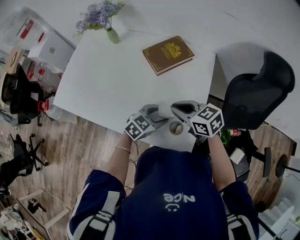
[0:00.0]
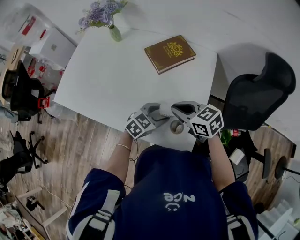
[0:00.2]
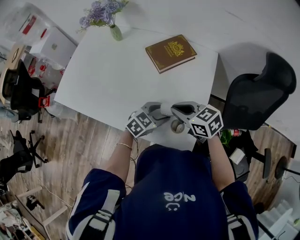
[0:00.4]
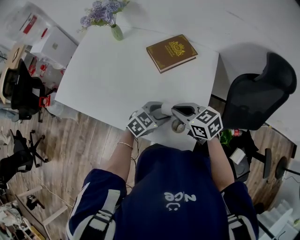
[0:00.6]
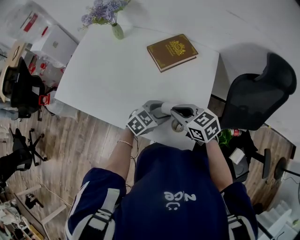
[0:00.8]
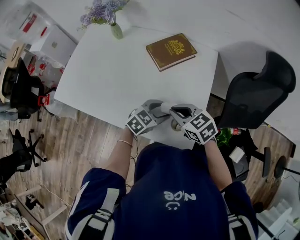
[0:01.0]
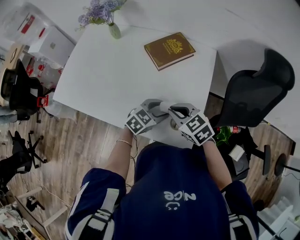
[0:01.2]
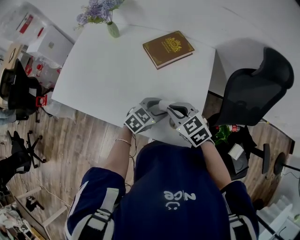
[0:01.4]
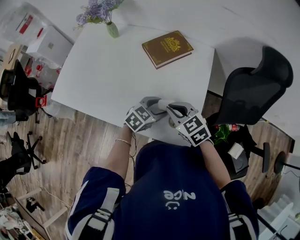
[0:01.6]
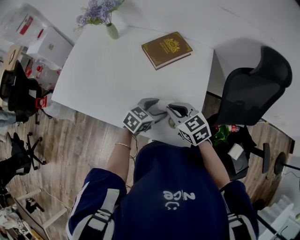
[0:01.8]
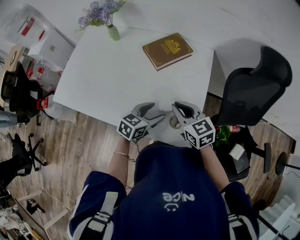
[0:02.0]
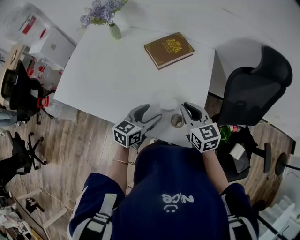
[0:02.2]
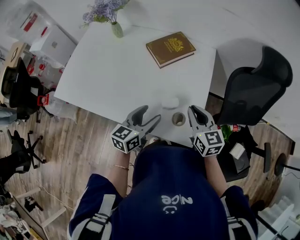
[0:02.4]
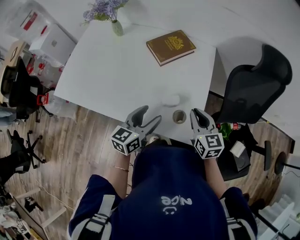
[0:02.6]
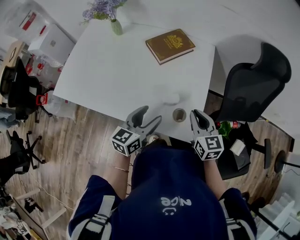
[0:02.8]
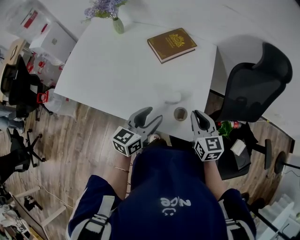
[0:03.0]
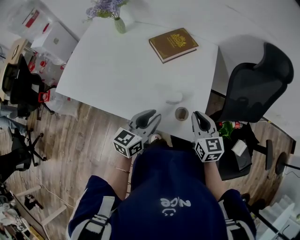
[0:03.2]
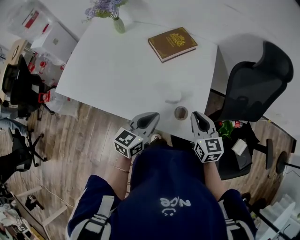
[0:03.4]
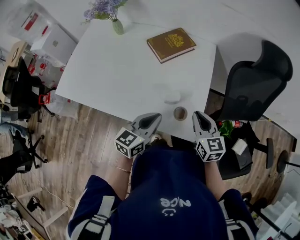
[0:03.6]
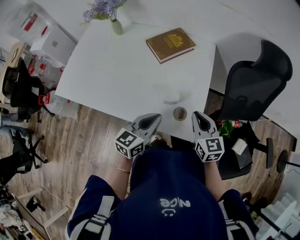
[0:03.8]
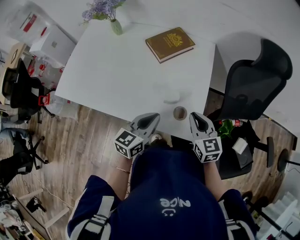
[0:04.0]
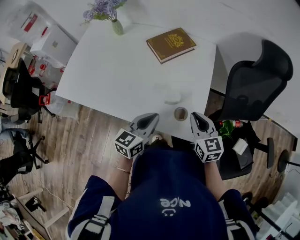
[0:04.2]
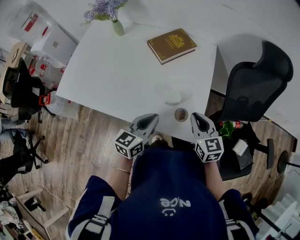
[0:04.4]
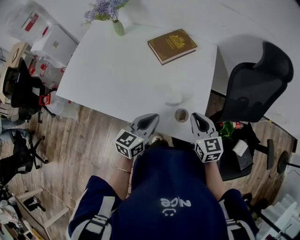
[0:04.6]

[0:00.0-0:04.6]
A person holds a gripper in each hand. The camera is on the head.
0:01.6 to 0:03.0: The right gripper heads to the right, covering about 10 cm, and rotates approximately 30 degrees; the left gripper heads upward, backward and to the left, covering roughly 15 cm, and swivels about 40 degrees.
0:03.0 to 0:04.6: The left gripper closes its fingers.

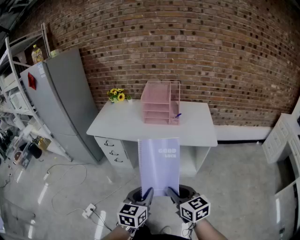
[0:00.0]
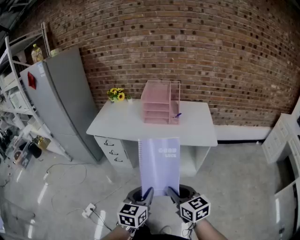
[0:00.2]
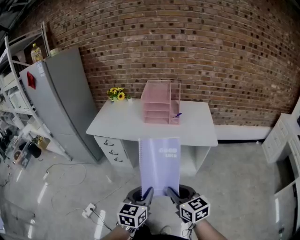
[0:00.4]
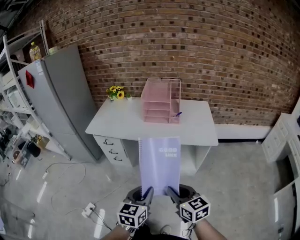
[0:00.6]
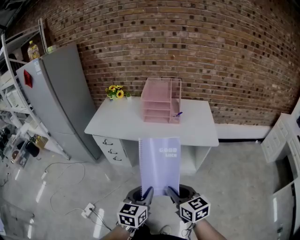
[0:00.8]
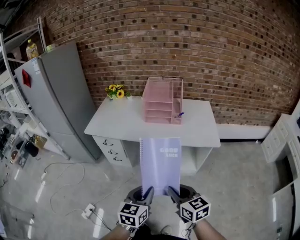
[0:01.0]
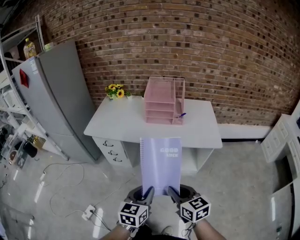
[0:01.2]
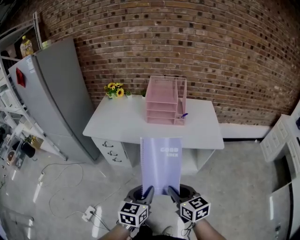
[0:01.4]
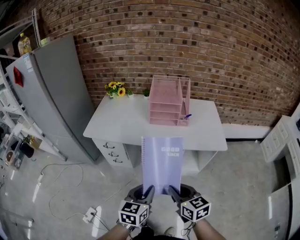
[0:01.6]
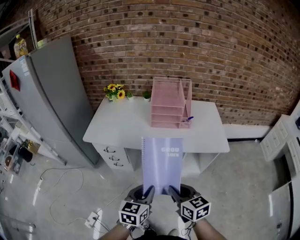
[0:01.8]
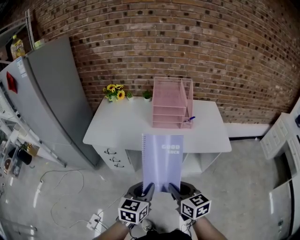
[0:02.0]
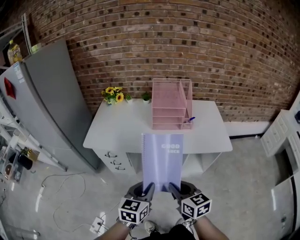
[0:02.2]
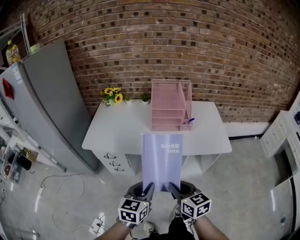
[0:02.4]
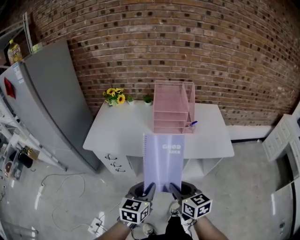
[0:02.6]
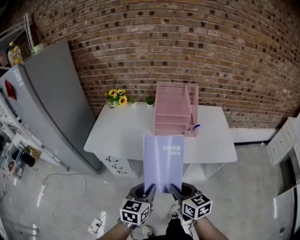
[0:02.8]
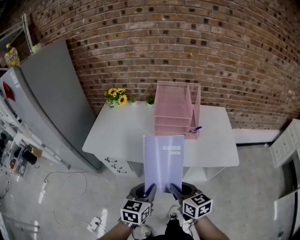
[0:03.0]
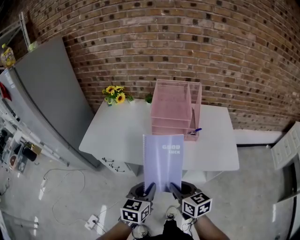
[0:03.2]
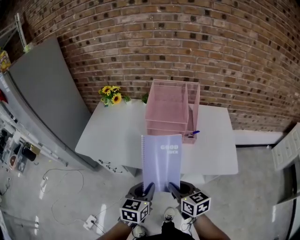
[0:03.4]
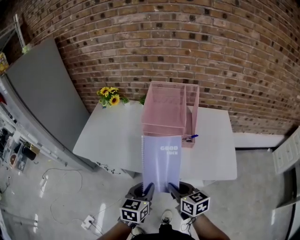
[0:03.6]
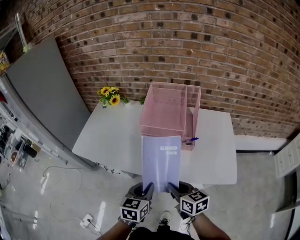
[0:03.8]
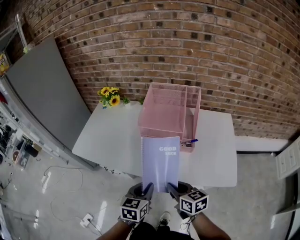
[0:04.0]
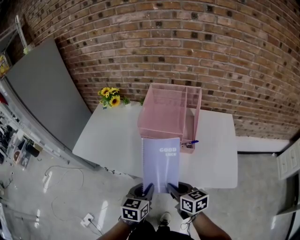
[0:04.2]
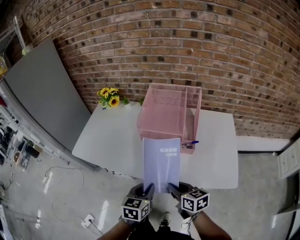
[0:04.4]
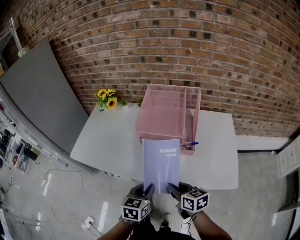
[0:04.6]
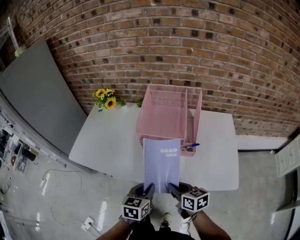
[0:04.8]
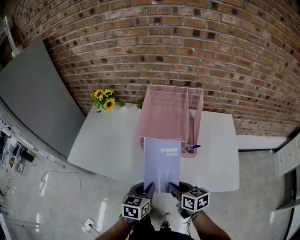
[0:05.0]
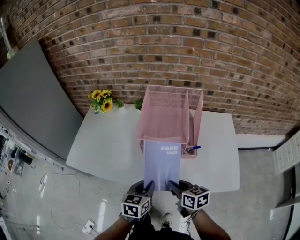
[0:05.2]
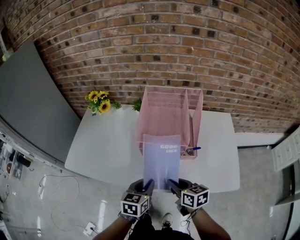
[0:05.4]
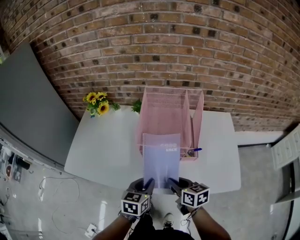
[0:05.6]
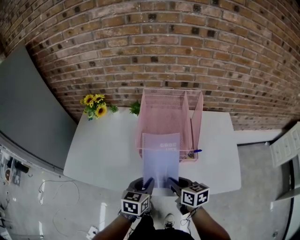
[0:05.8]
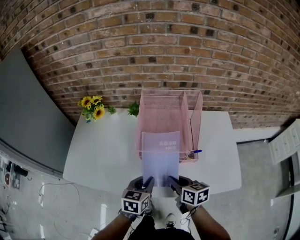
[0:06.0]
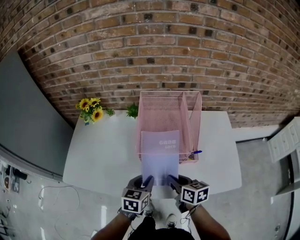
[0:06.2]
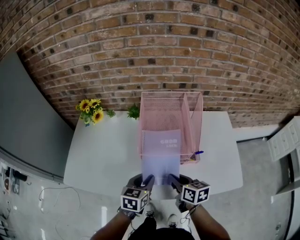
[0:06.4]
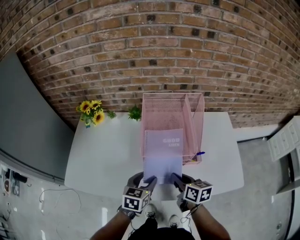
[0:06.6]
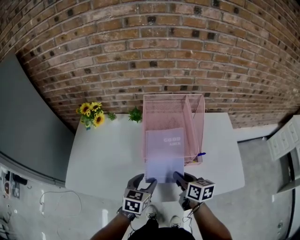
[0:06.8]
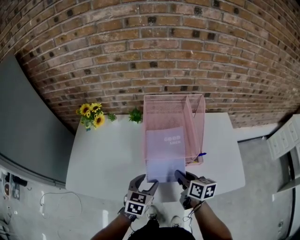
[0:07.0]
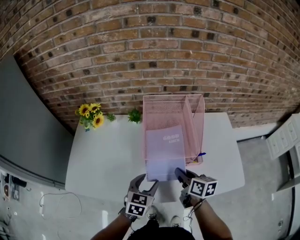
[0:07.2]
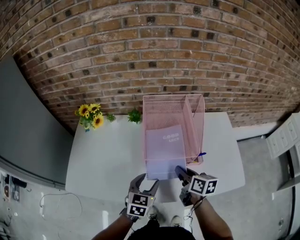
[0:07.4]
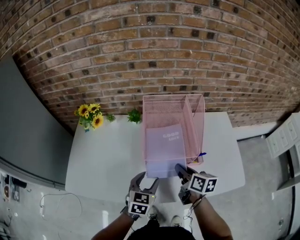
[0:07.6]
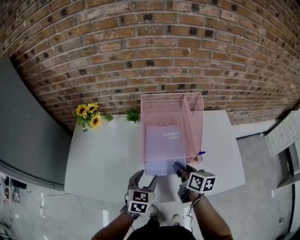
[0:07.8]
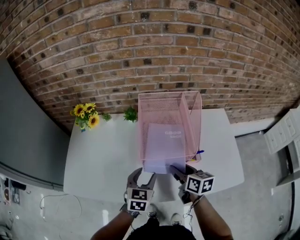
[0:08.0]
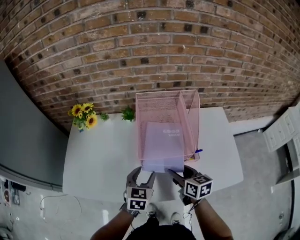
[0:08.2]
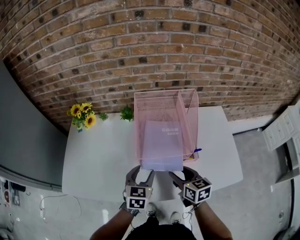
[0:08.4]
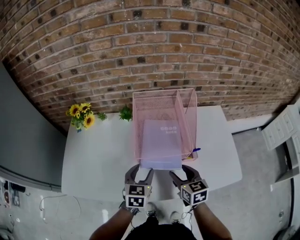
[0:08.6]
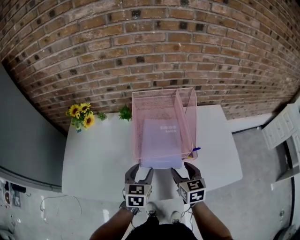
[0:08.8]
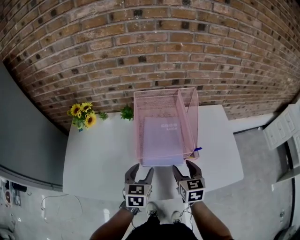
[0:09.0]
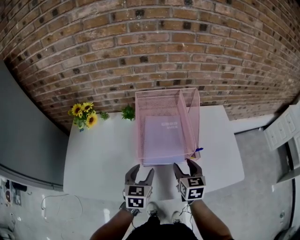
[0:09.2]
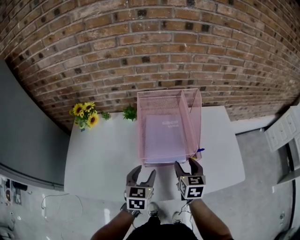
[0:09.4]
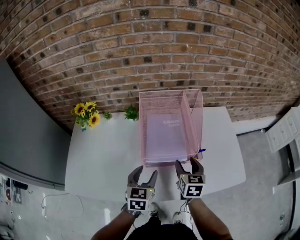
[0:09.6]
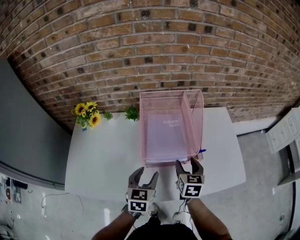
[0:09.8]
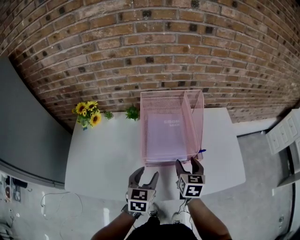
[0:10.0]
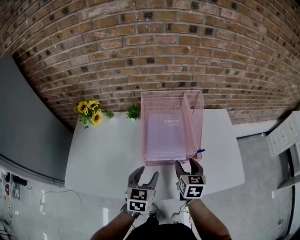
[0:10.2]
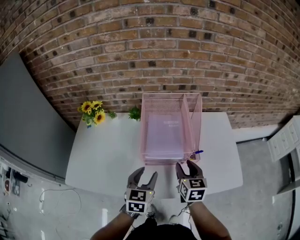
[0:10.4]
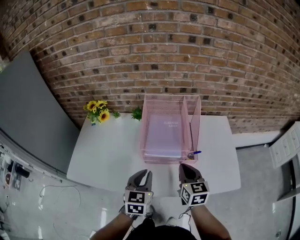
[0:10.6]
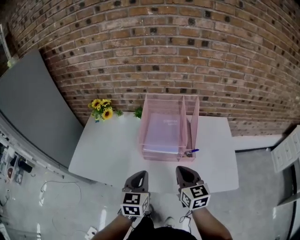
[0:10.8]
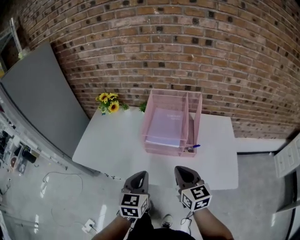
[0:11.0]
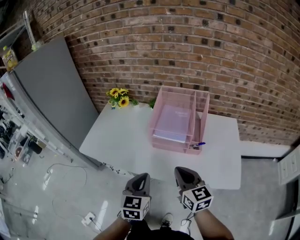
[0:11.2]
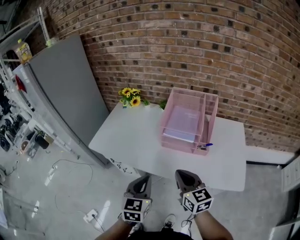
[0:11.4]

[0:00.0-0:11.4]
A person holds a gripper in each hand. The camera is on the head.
0:00.0 to 0:01.4: Both grippers move forward and to the left, roughly 10 cm.
0:01.4 to 0:02.8: The two grippers go about 15 cm forward.
0:02.8 to 0:04.2: The two grippers go some 20 cm forward, to the right and downward.
0:04.2 to 0:05.6: The grippers both shift forward by approximately 10 cm.
0:05.6 to 0:07.2: The grippers both shift forward by about 10 cm. The left gripper opens.
0:07.2 to 0:08.6: The right gripper swivels about 30 degrees, and opens up.
0:08.6 to 0:10.0: The grippers make only small movements.
0:10.0 to 0:11.4: The right gripper ends up approximately 25 cm from where it was, turns by about 50 degrees, and closes; the left gripper moves about 25 cm, swivels roughly 20 degrees, and closes its fingers.

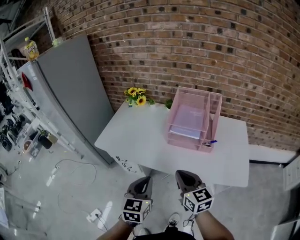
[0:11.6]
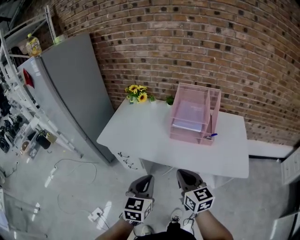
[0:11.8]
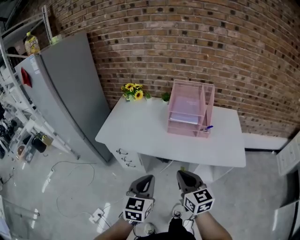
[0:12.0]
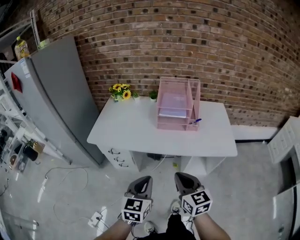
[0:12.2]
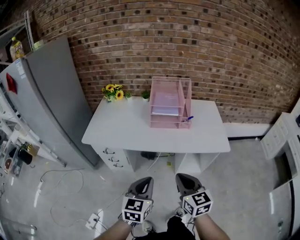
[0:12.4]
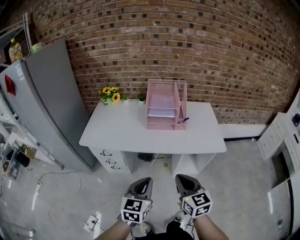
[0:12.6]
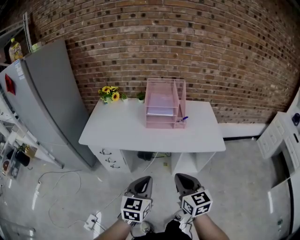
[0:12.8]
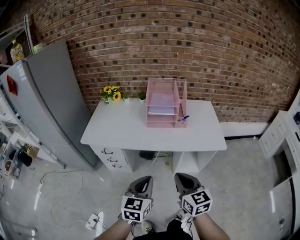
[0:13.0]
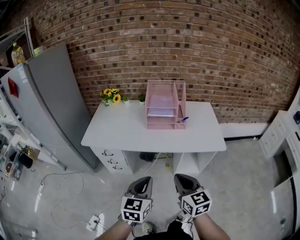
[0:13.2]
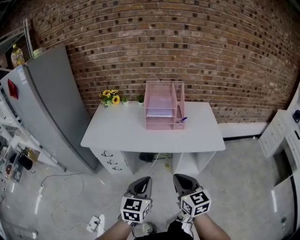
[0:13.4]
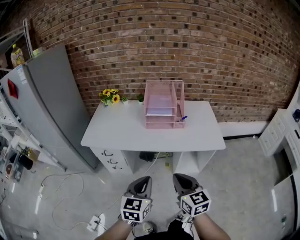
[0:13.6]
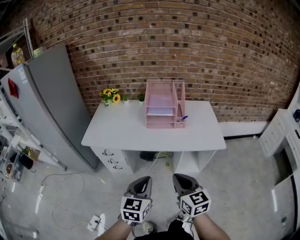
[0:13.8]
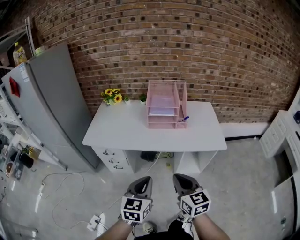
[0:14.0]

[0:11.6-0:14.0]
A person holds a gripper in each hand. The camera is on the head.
0:11.6 to 0:12.8: The grippers both shift backward by roughly 20 cm.
0:12.8 to 0:14.0: The grippers stay close to where they were, moving slightly.

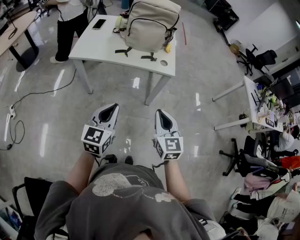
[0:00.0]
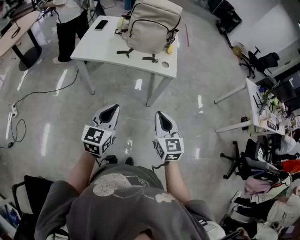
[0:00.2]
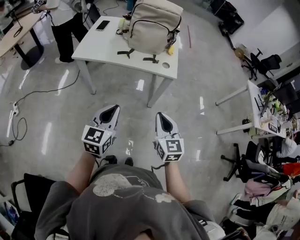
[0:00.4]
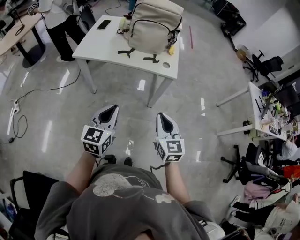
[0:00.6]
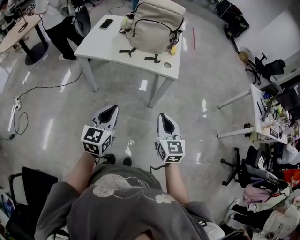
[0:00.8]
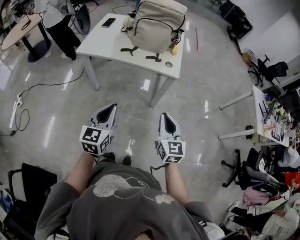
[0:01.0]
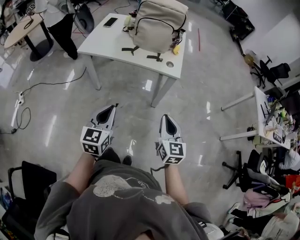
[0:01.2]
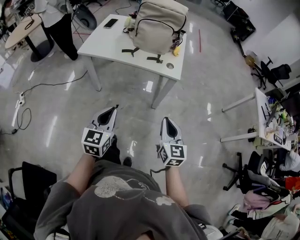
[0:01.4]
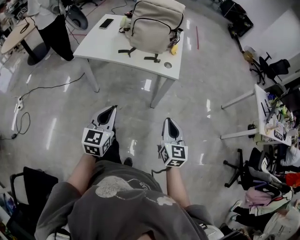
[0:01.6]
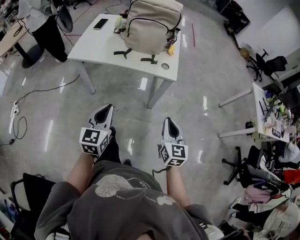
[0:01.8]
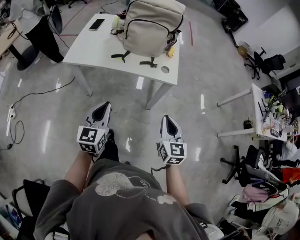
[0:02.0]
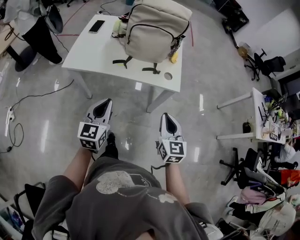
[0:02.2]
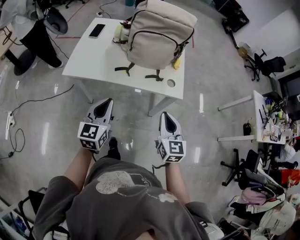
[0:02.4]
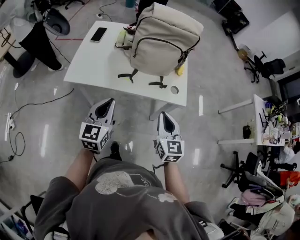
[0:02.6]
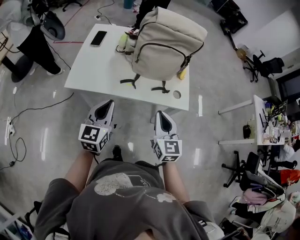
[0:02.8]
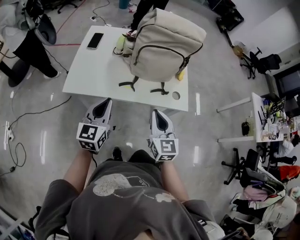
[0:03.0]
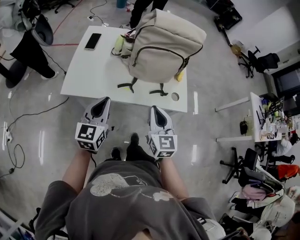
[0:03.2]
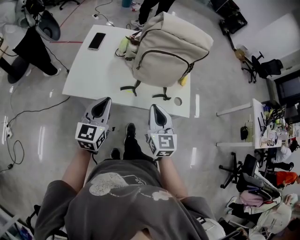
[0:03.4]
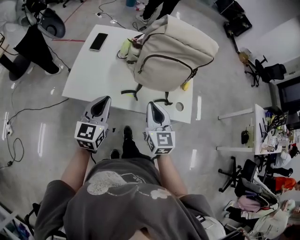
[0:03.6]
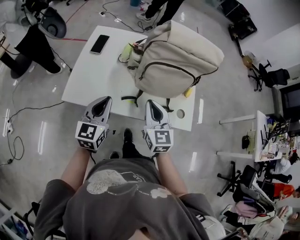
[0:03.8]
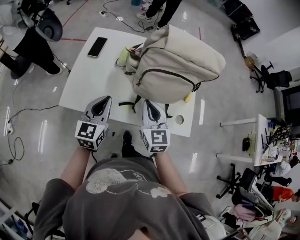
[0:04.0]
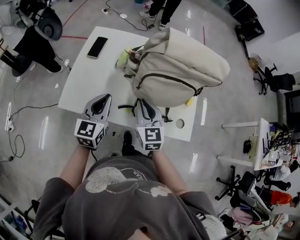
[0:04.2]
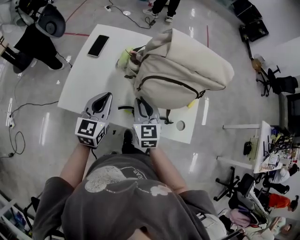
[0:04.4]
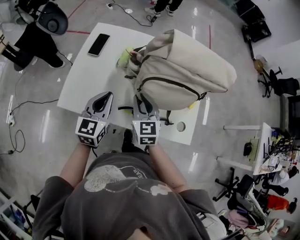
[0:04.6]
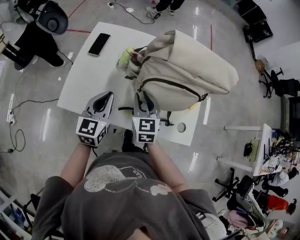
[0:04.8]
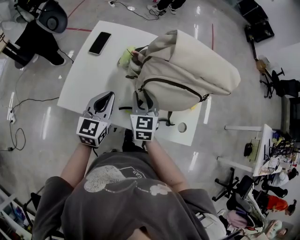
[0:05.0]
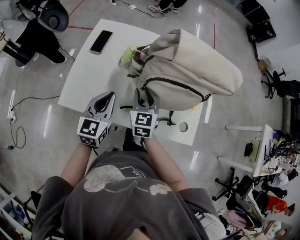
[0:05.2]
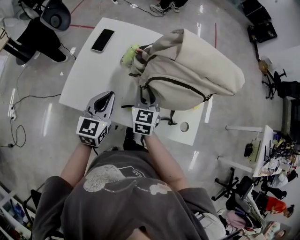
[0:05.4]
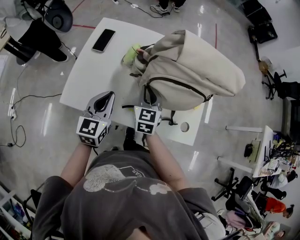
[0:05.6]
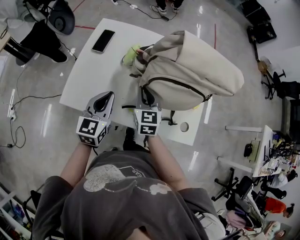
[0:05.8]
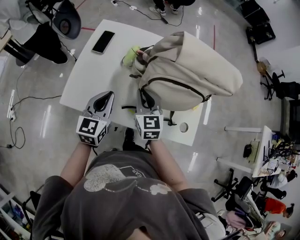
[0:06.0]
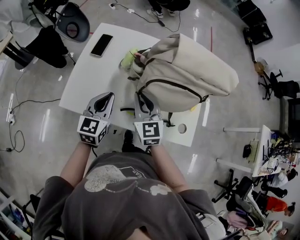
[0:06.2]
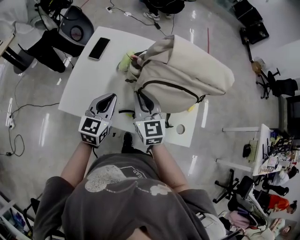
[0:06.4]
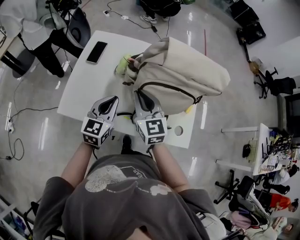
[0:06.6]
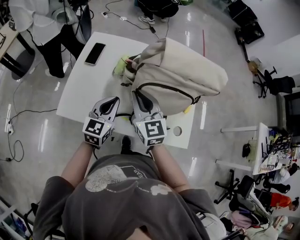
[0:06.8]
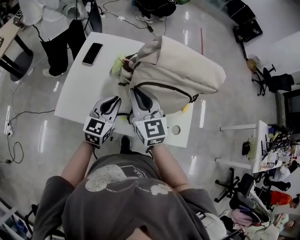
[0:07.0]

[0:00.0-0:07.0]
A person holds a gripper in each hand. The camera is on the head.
0:00.0 to 0:01.4: The right gripper is displaced to the right by some 10 cm.
0:01.4 to 0:02.8: The two grippers go roughly 35 cm forward and to the left.
0:02.8 to 0:04.2: The grippers both shift forward by approximately 20 cm.
0:04.2 to 0:05.6: The right gripper shifts roughly 10 cm forward, and opens and closes again.
0:05.6 to 0:07.0: The right gripper shifts about 15 cm upward, and swivels about 20 degrees. The left gripper is displaced to the right by roughly 5 cm.
